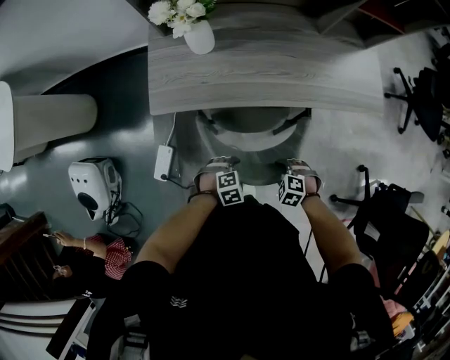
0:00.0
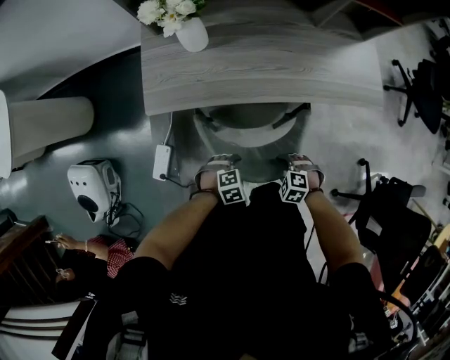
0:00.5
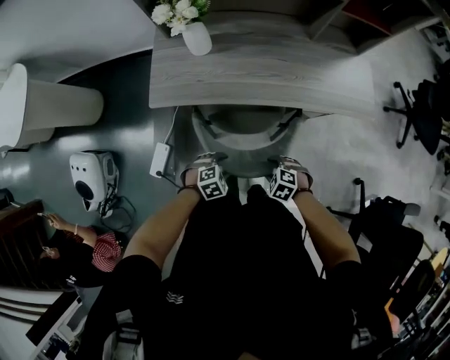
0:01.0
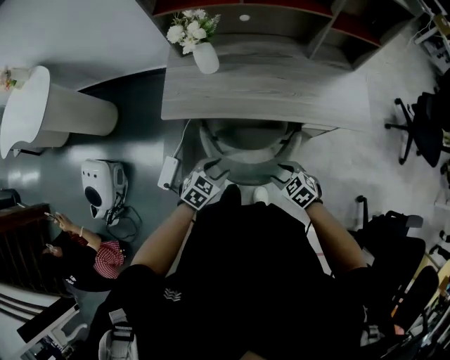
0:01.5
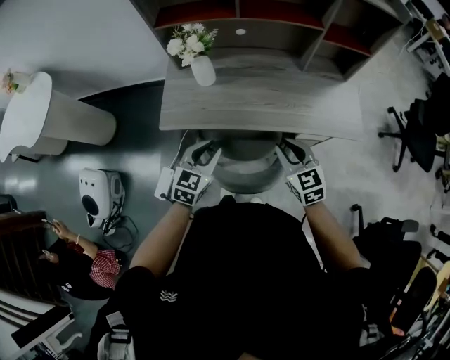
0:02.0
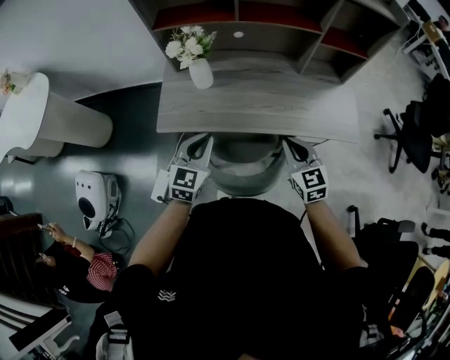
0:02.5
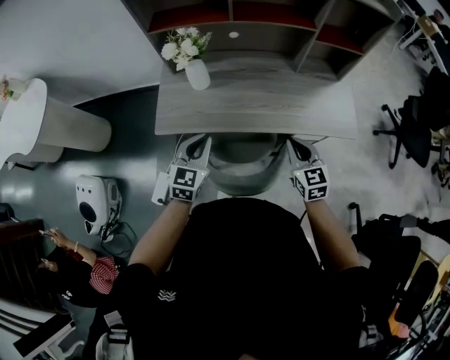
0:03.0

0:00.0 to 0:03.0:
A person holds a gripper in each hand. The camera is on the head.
0:00.0 to 0:01.5: Both grippers travel together upward, approximately 15 cm. The right gripper changes its angle by about 30 degrees. The left gripper turns by about 40 degrees.
0:01.5 to 0:03.0: The right gripper heads upward, forward and to the right, covering approximately 20 cm, angles its fingers upward, by roughly 30 degrees, and closes up. The left gripper travels upward and forward by approximately 20 cm, swivels roughly 30 degrees, and closes up.

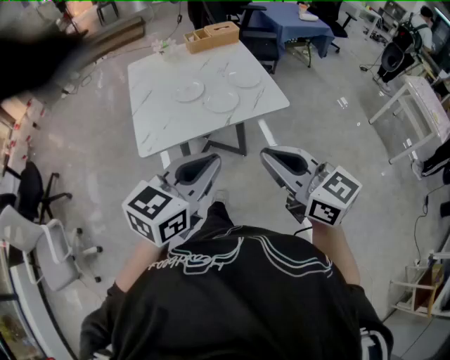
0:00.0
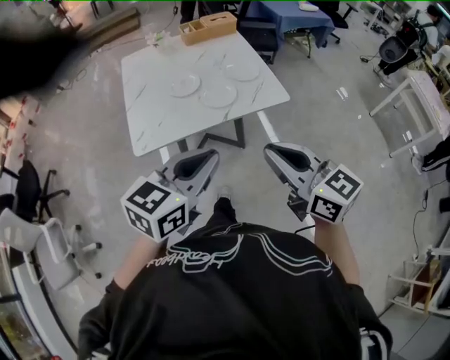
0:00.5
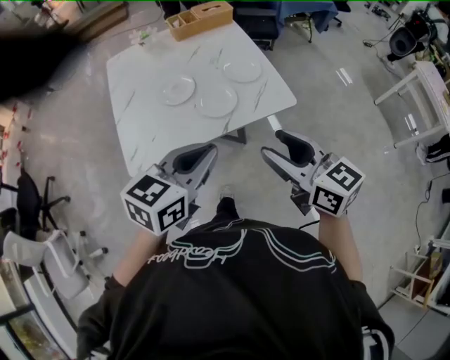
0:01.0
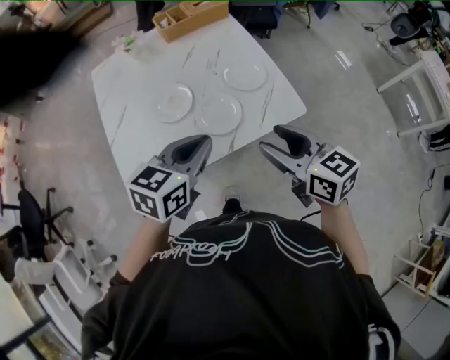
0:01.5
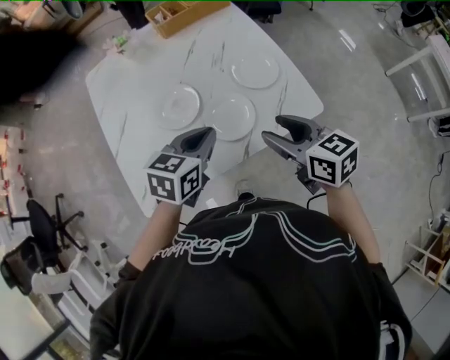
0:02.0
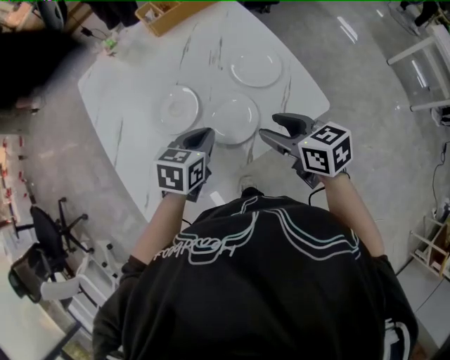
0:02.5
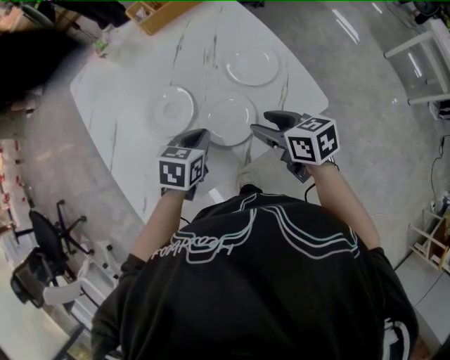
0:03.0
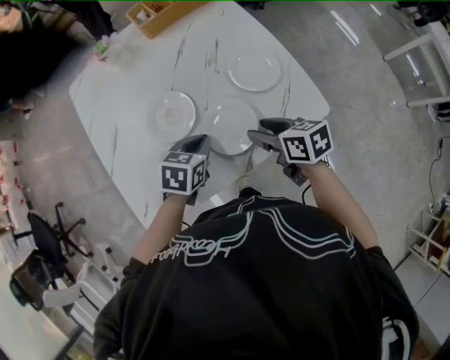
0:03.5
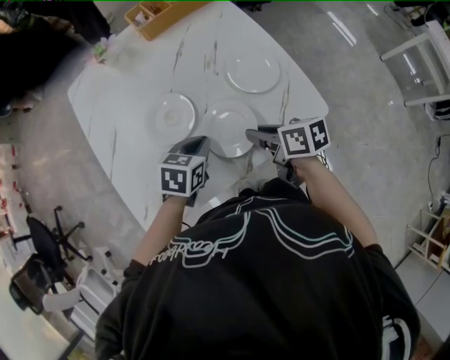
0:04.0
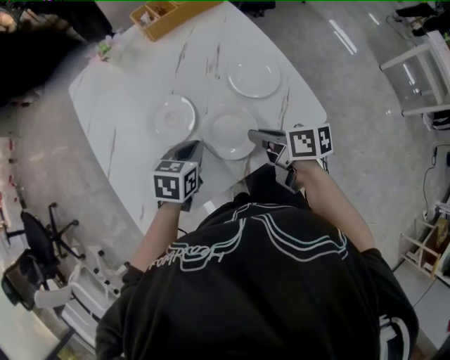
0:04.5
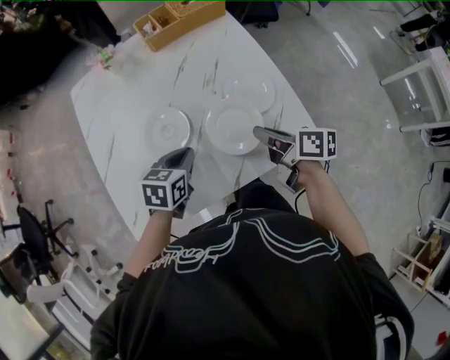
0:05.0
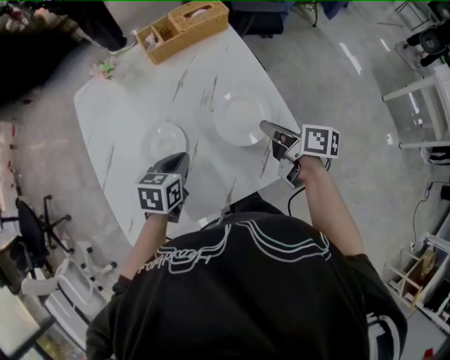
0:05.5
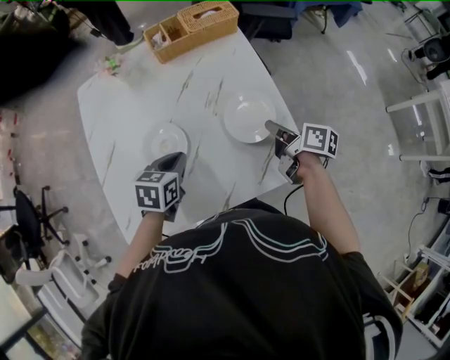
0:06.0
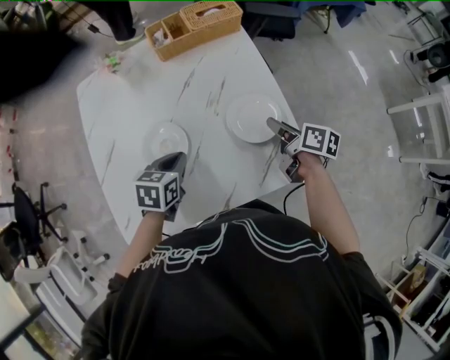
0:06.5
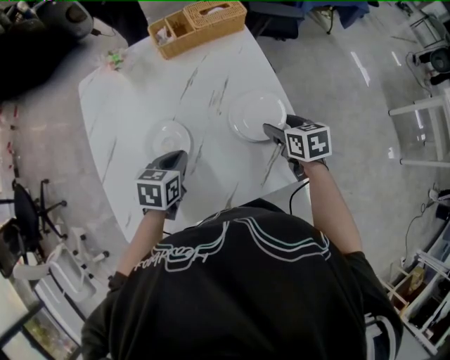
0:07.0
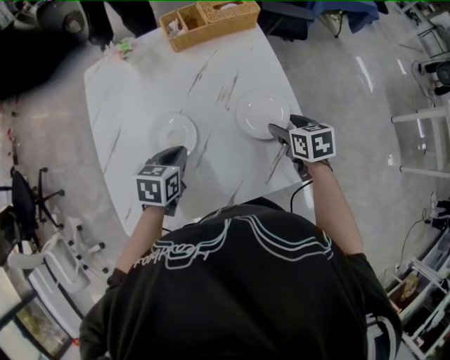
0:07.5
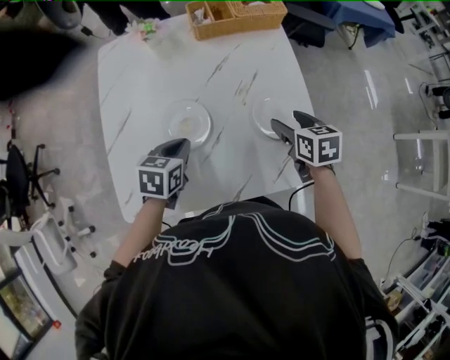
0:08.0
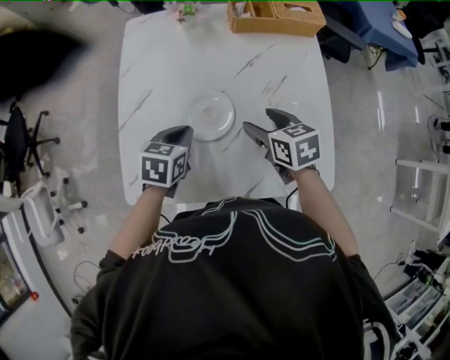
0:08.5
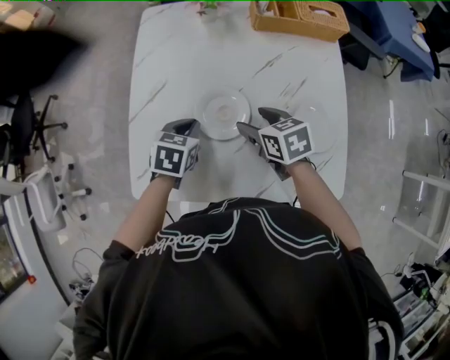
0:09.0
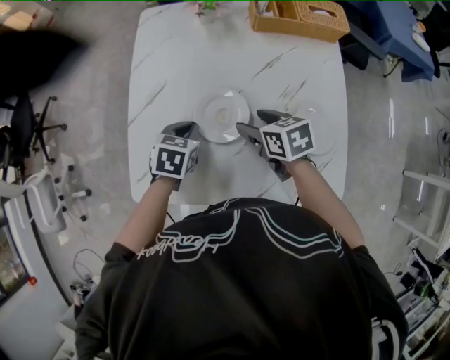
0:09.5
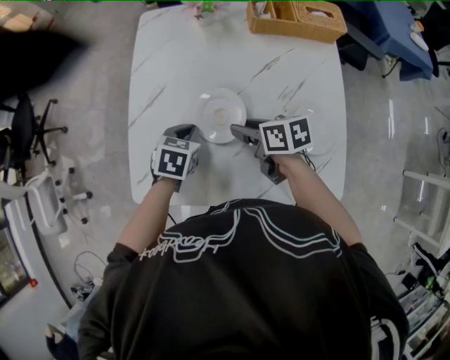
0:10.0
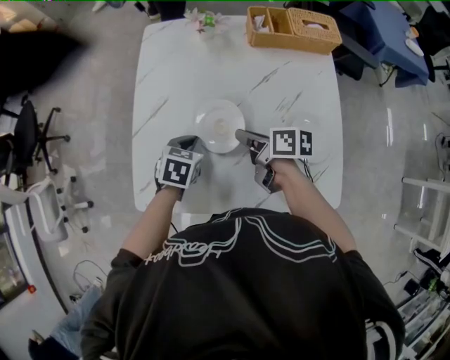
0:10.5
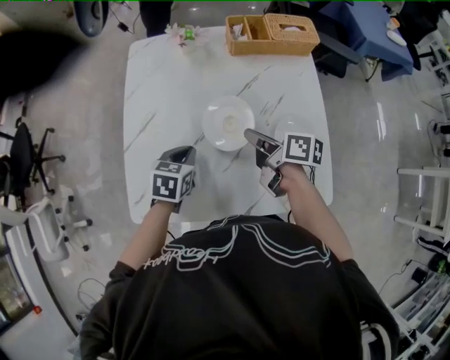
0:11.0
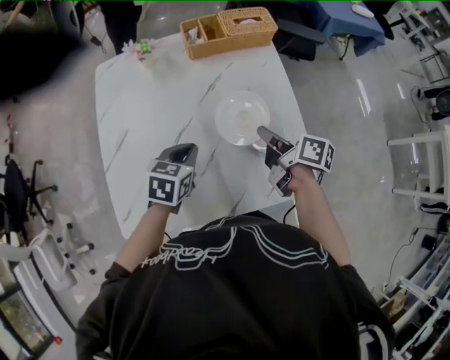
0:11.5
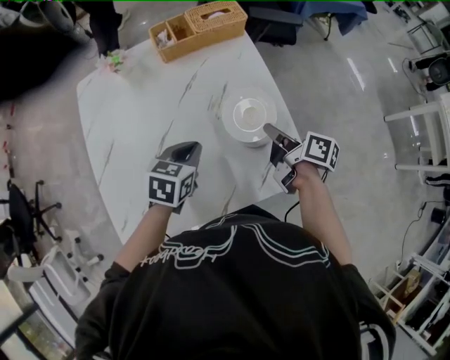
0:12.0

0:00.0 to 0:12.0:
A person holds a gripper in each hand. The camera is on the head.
0:00.0 to 0:02.0: Both grippers travel together forward and downward, approximately 40 cm. The left gripper swivels some 20 degrees; the right gripper turns by approximately 30 degrees, and opens up.
0:02.0 to 0:04.0: The right gripper shifts roughly 15 cm downward and forward, rotates roughly 30 degrees, and closes; the left gripper shifts some 10 cm downward.
0:04.0 to 0:06.0: The left gripper travels forward by approximately 5 cm; the right gripper heads forward and to the right, covering about 20 cm, and changes its angle by some 20 degrees.
0:06.0 to 0:08.0: Both grippers travel together to the left, about 5 cm. The right gripper rolls counterclockwise, seen from behind, by about 50 degrees, and opens up.
0:08.0 to 0:10.0: The right gripper moves about 25 cm, turns by roughly 30 degrees, and closes its fingers; the left gripper ends up some 10 cm from where it was.
0:10.0 to 0:12.0: The left gripper moves some 20 cm, and swivels approximately 20 degrees, while the right gripper moves about 30 cm, swivels some 60 degrees, and closes.

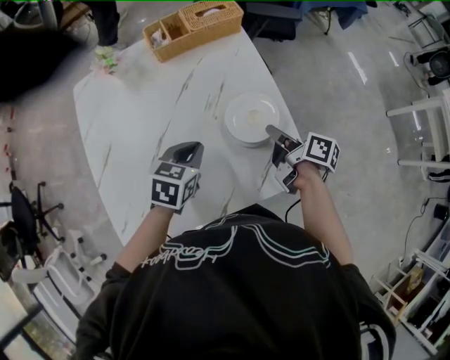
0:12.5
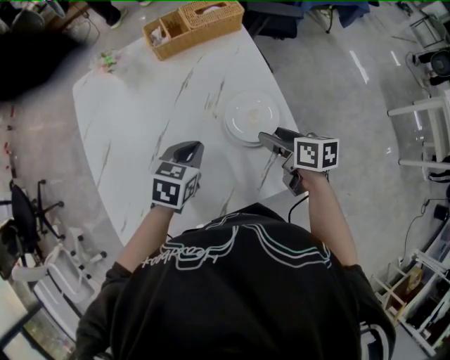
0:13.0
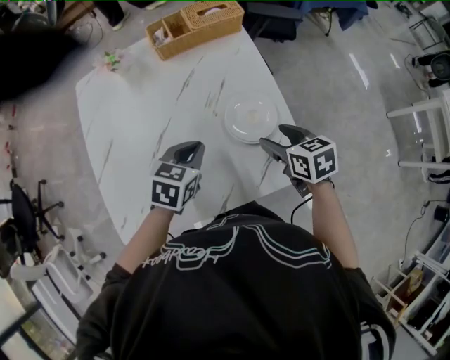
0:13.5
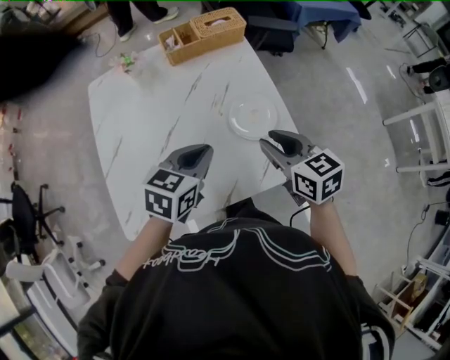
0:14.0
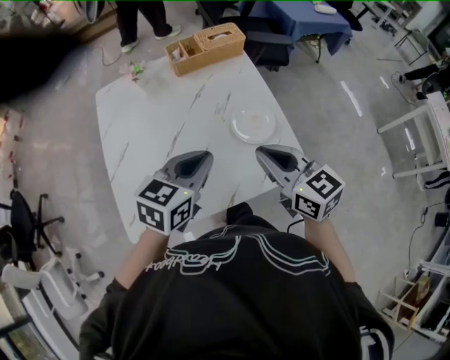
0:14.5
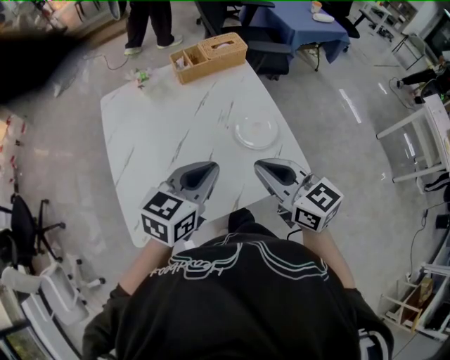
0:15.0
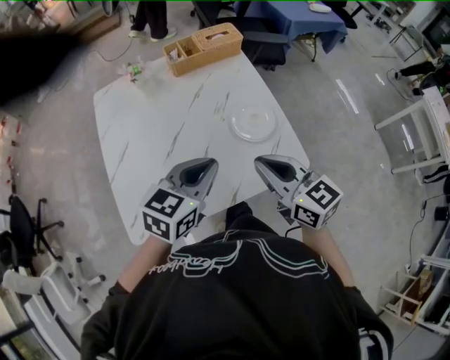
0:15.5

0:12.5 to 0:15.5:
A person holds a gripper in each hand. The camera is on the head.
0:12.5 to 0:14.0: The right gripper goes approximately 15 cm upward, backward and to the left, rolls counterclockwise, seen from behind, by roughly 60 degrees, and opens, then closes again. Meanwhile the left gripper travels upward and backward by some 10 cm.
0:14.0 to 0:15.5: The right gripper is displaced backward, to the left and upward by some 10 cm, and closes up, while the left gripper heads backward and upward, covering roughly 10 cm.

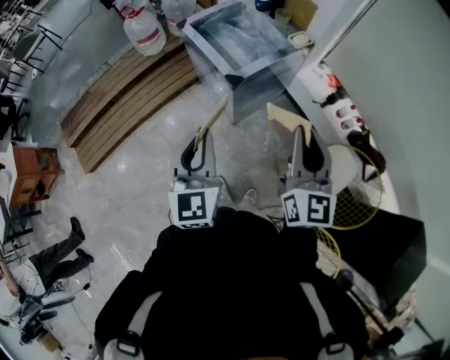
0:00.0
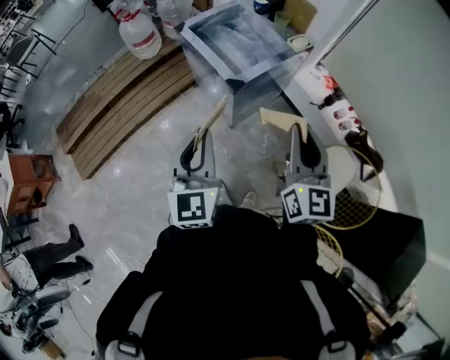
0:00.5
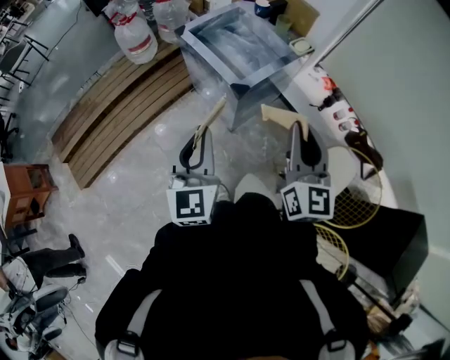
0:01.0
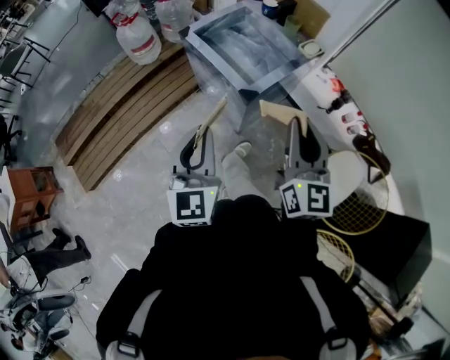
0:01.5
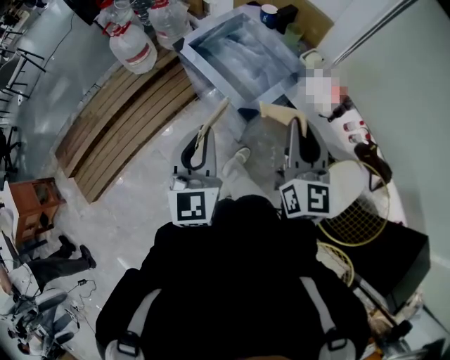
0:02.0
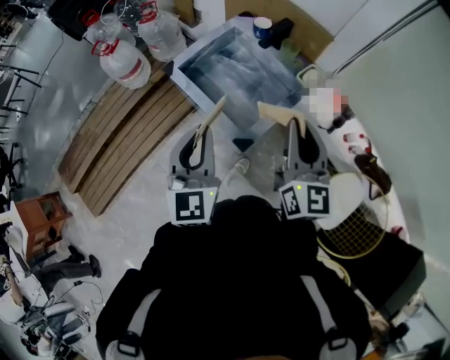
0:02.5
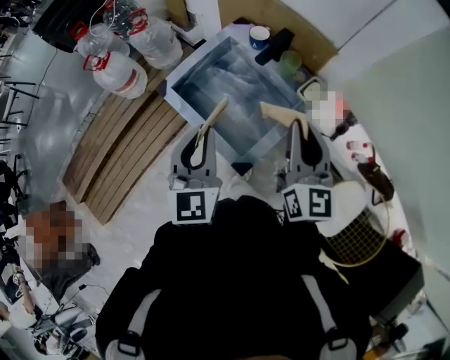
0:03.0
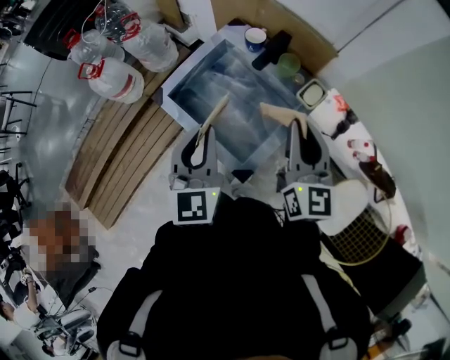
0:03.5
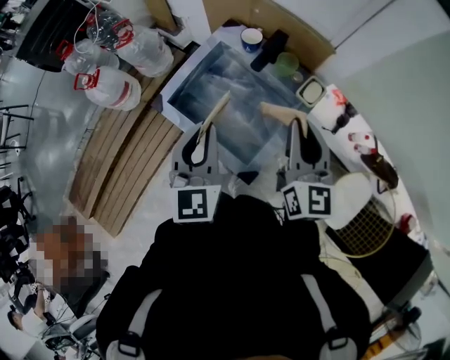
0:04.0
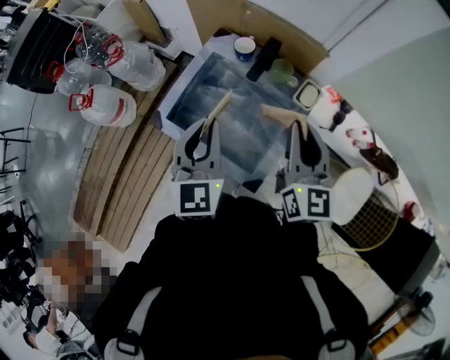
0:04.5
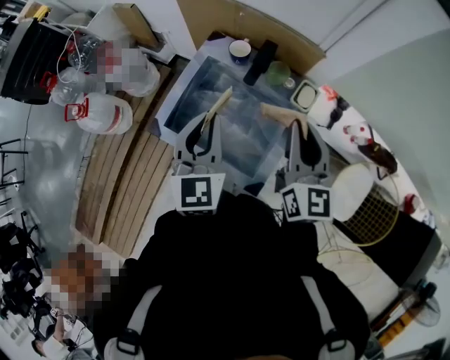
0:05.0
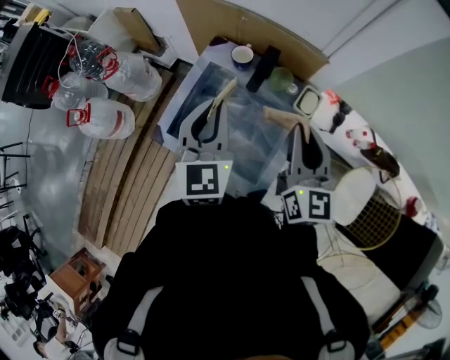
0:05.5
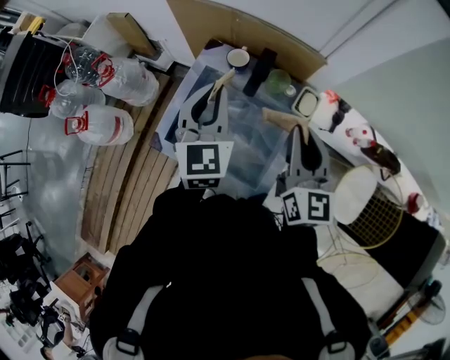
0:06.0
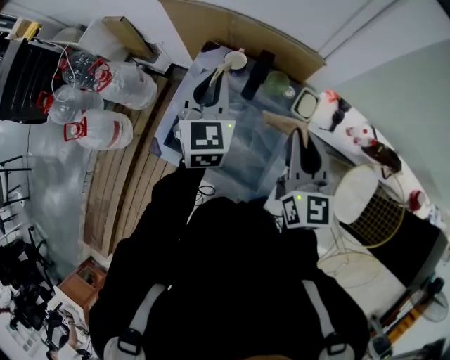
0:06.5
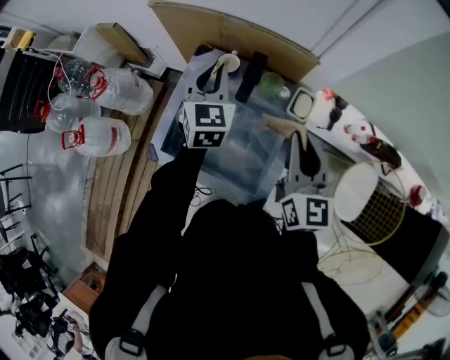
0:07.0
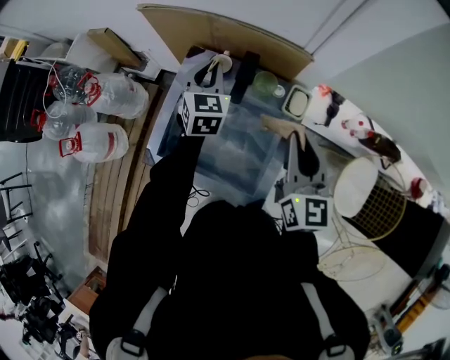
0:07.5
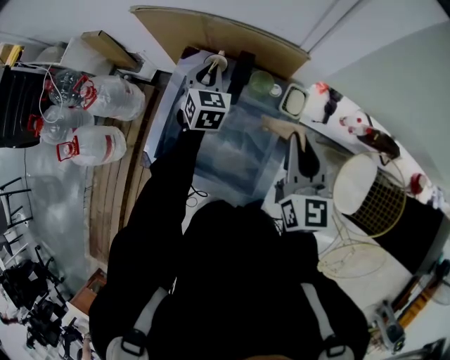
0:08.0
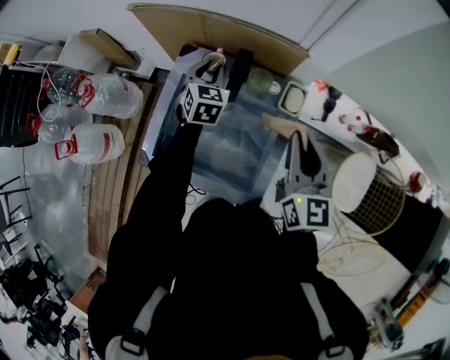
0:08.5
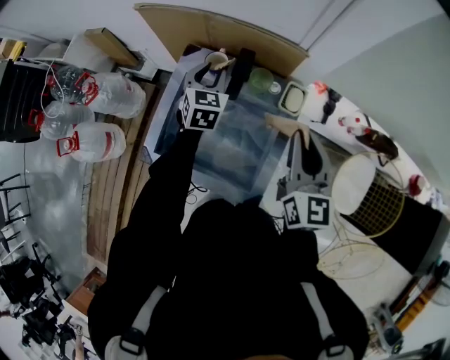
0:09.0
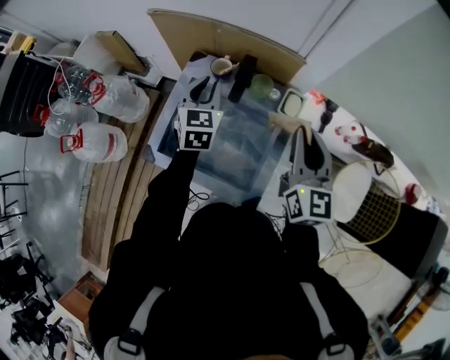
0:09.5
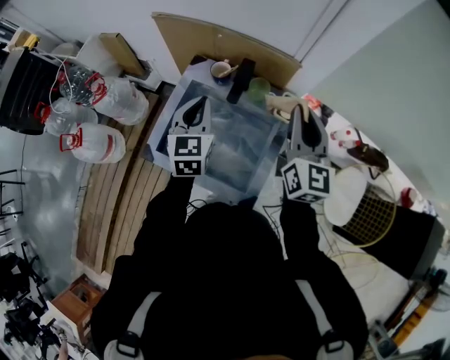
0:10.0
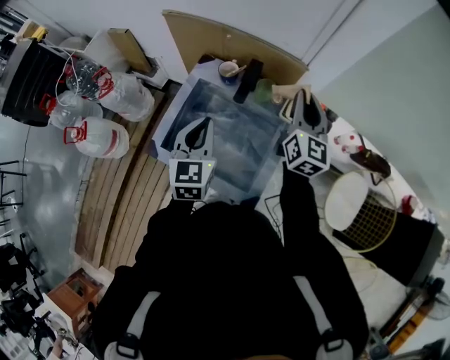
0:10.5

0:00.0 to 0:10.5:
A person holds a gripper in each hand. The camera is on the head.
0:00.0 to 0:02.0: The grippers both shift forward and to the left by roughly 20 cm.
0:02.0 to 0:04.0: Both grippers travel together forward, approximately 30 cm.
0:04.0 to 0:06.5: The left gripper heads forward, covering roughly 25 cm. Meanwhile the right gripper is displaced forward by about 5 cm.
0:06.5 to 0:08.5: The left gripper goes approximately 20 cm downward and forward.
0:08.5 to 0:10.5: The left gripper heads backward and upward, covering about 25 cm, while the right gripper travels forward by roughly 10 cm.
